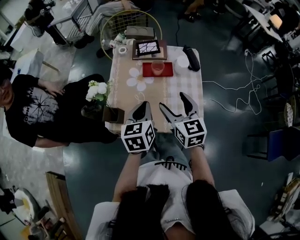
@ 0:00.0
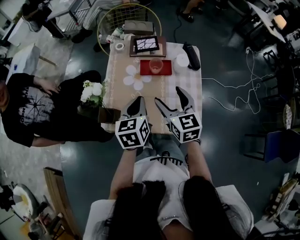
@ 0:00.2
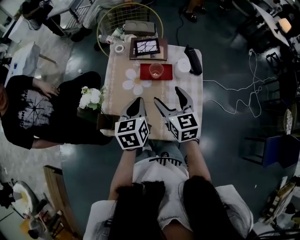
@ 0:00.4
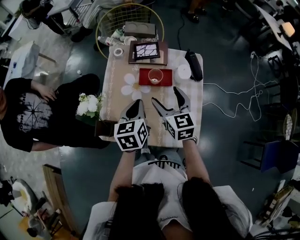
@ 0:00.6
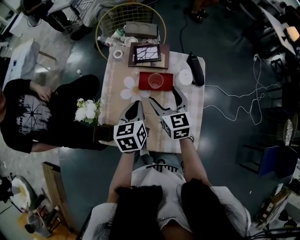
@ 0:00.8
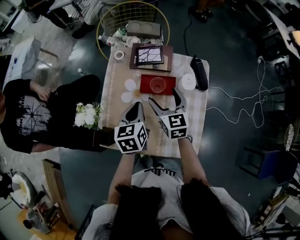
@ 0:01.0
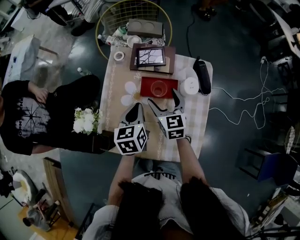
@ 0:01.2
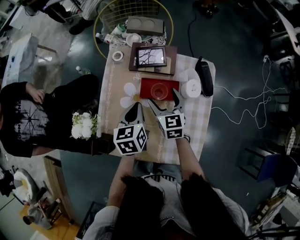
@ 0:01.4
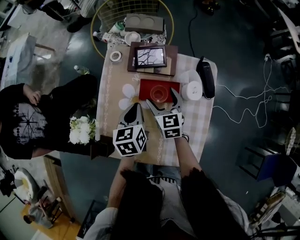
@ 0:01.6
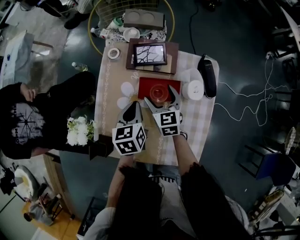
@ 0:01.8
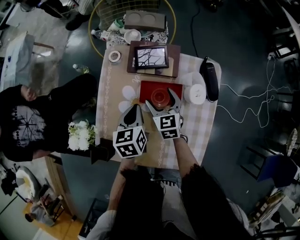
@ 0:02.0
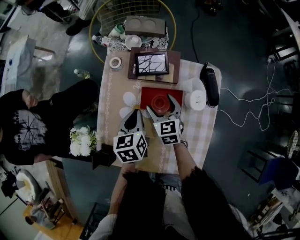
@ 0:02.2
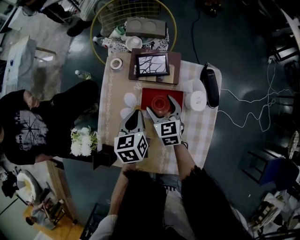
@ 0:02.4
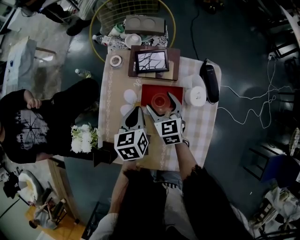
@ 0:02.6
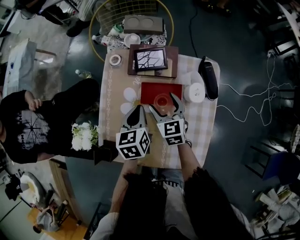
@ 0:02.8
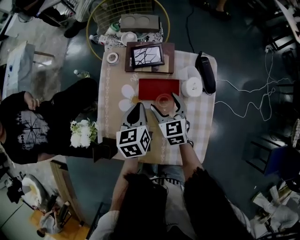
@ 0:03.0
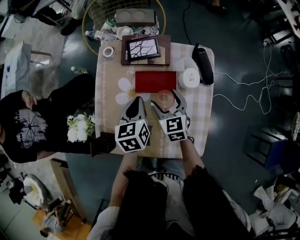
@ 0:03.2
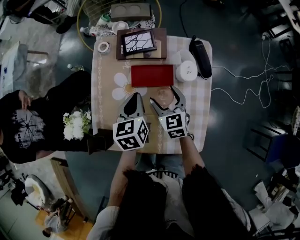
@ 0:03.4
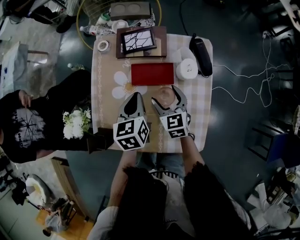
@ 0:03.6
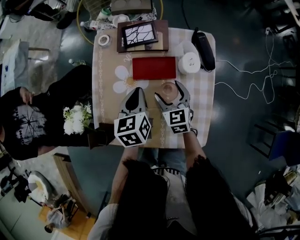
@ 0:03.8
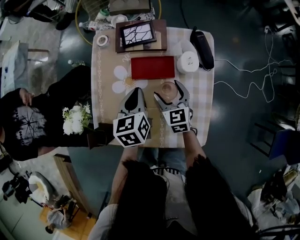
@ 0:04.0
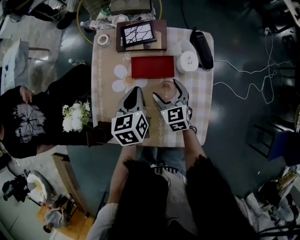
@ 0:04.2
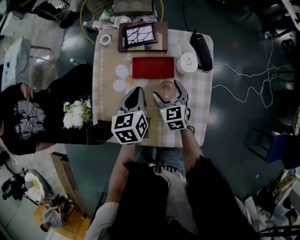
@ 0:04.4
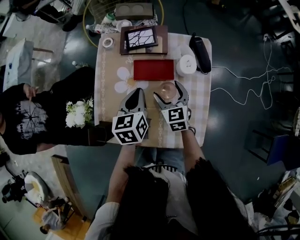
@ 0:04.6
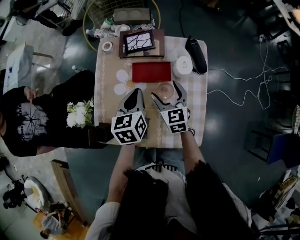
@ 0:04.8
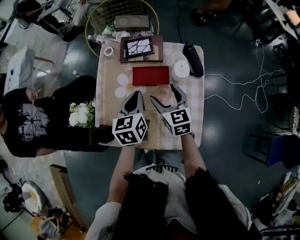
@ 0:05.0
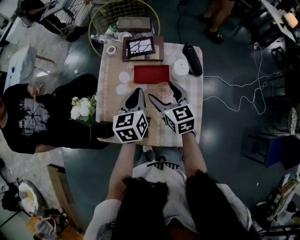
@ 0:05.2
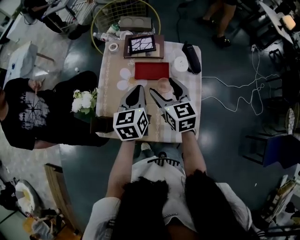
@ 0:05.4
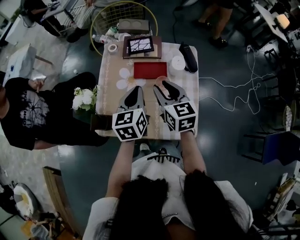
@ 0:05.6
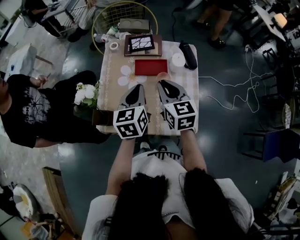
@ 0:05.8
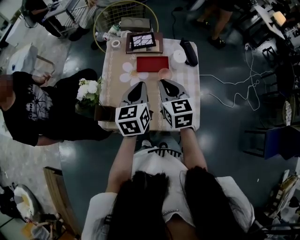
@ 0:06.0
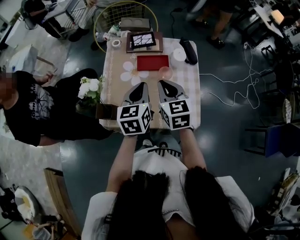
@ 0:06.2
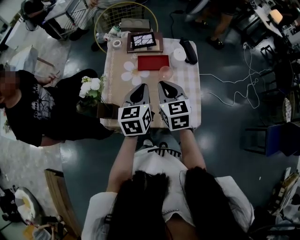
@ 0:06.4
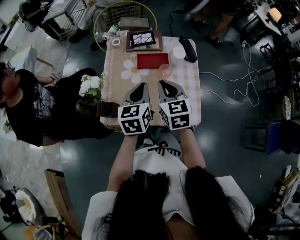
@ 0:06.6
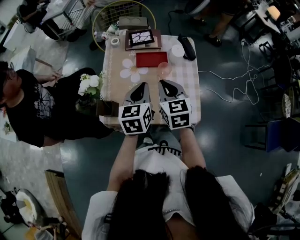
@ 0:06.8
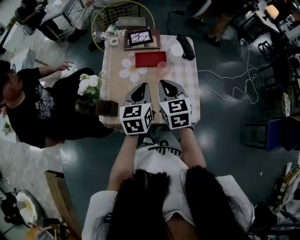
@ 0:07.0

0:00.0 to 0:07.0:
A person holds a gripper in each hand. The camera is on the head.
0:00.0 to 0:01.4: Both grippers travel together forward and downward, about 25 cm.
0:02.8 to 0:04.2: The right gripper travels backward by some 5 cm.
0:04.2 to 0:05.6: The left gripper goes roughly 15 cm upward and backward, while the right gripper shifts approximately 20 cm upward, and closes.
0:05.6 to 0:07.0: Both grippers travel together backward, roughly 10 cm.

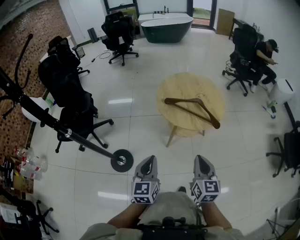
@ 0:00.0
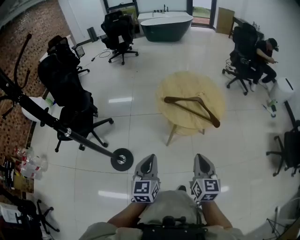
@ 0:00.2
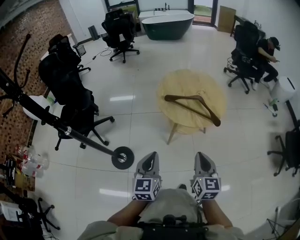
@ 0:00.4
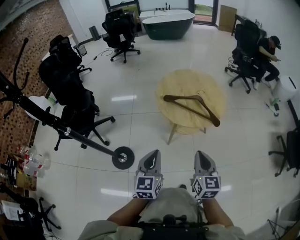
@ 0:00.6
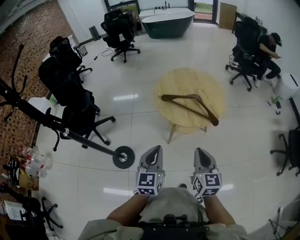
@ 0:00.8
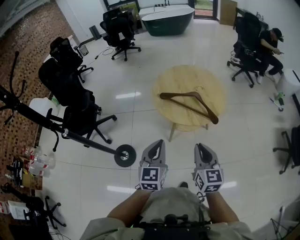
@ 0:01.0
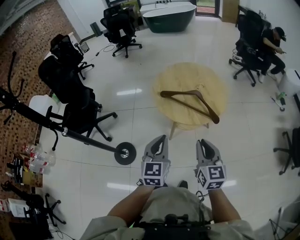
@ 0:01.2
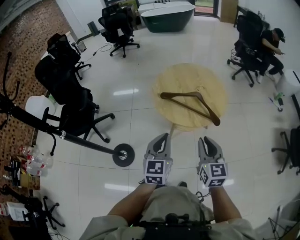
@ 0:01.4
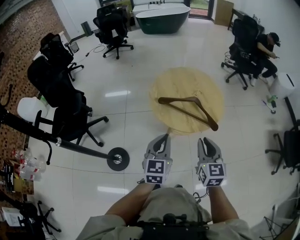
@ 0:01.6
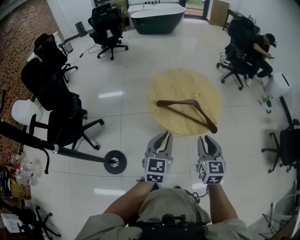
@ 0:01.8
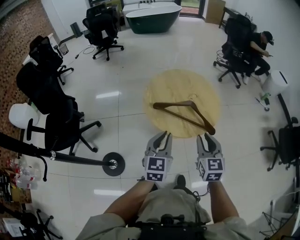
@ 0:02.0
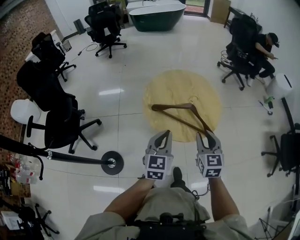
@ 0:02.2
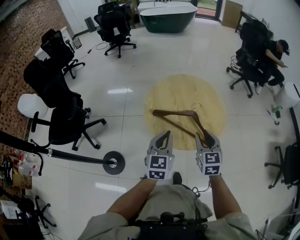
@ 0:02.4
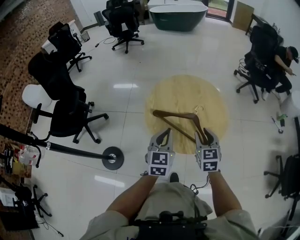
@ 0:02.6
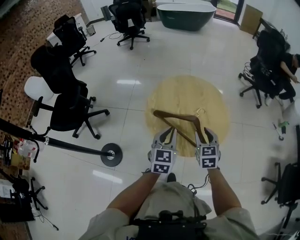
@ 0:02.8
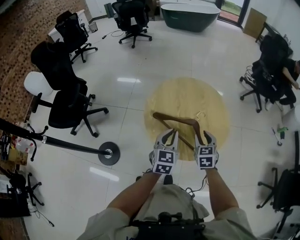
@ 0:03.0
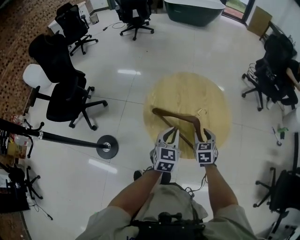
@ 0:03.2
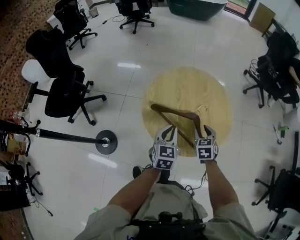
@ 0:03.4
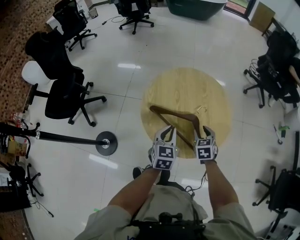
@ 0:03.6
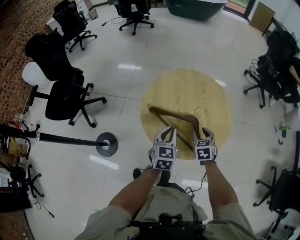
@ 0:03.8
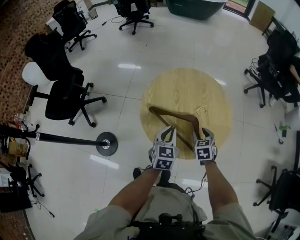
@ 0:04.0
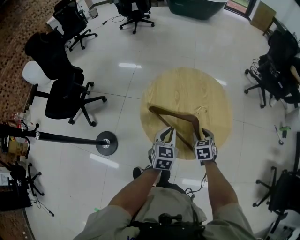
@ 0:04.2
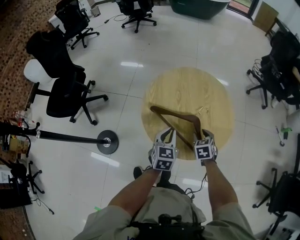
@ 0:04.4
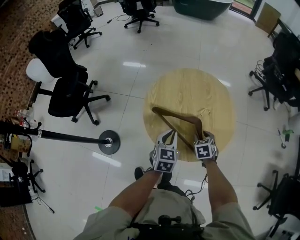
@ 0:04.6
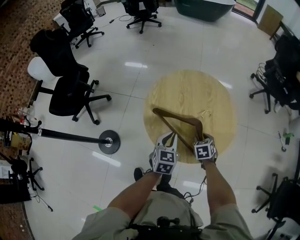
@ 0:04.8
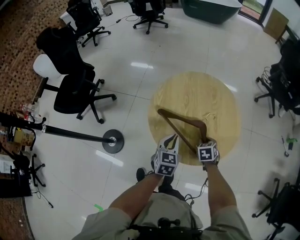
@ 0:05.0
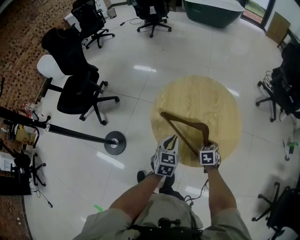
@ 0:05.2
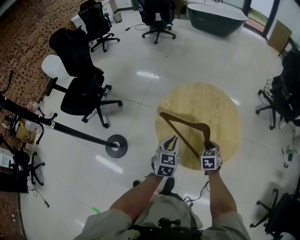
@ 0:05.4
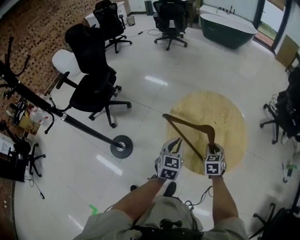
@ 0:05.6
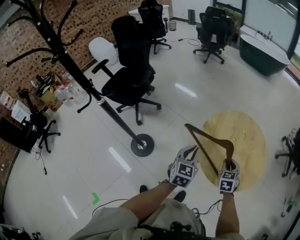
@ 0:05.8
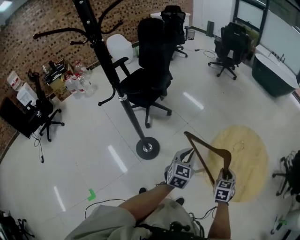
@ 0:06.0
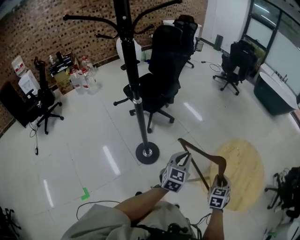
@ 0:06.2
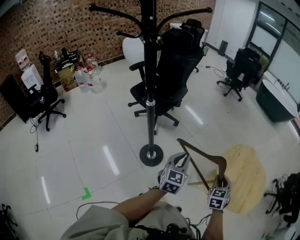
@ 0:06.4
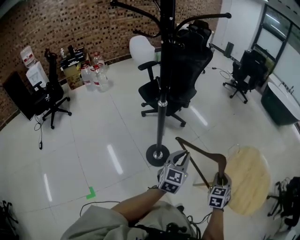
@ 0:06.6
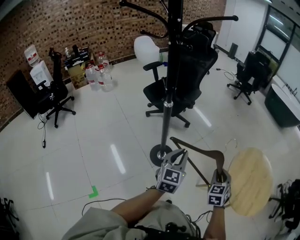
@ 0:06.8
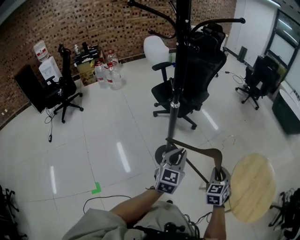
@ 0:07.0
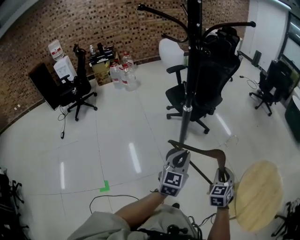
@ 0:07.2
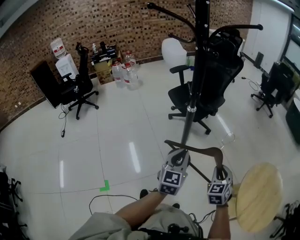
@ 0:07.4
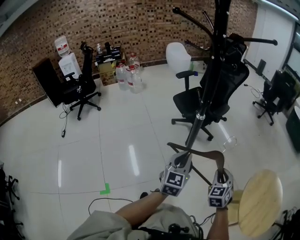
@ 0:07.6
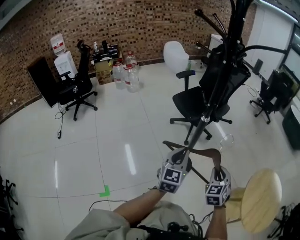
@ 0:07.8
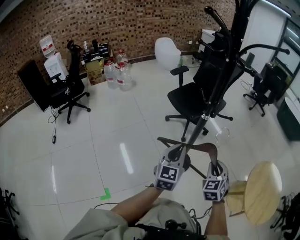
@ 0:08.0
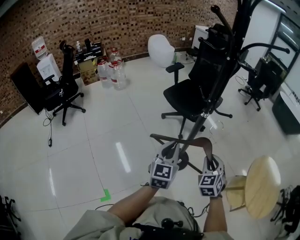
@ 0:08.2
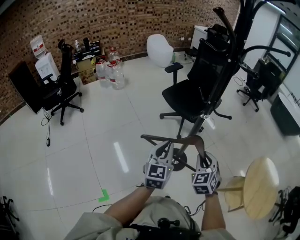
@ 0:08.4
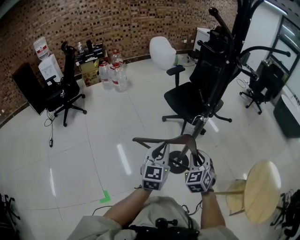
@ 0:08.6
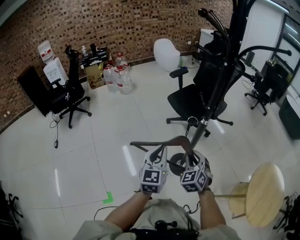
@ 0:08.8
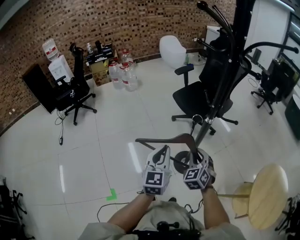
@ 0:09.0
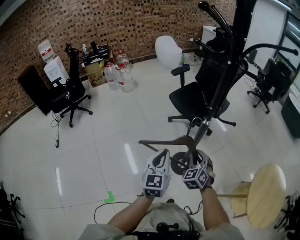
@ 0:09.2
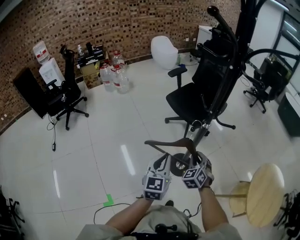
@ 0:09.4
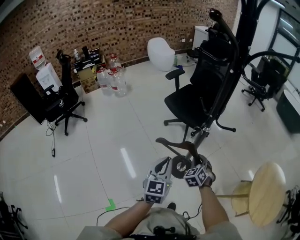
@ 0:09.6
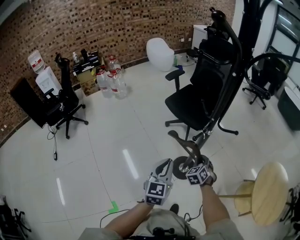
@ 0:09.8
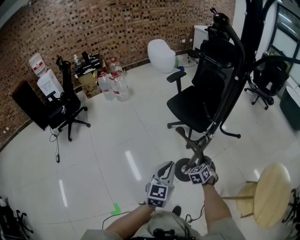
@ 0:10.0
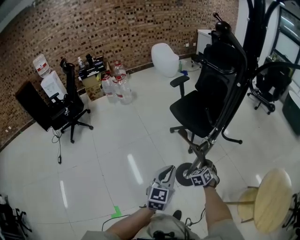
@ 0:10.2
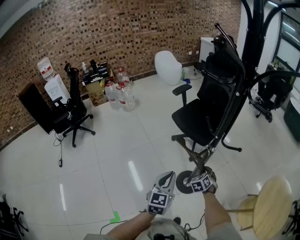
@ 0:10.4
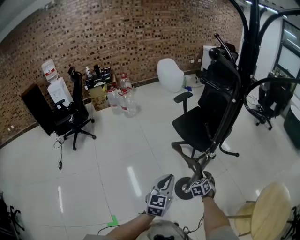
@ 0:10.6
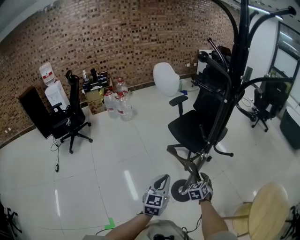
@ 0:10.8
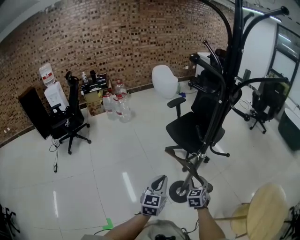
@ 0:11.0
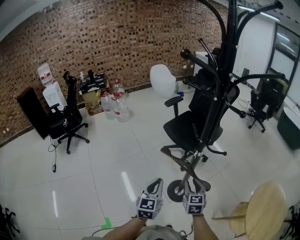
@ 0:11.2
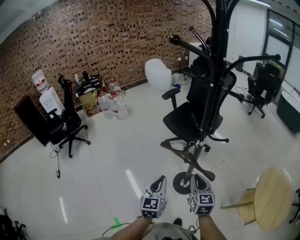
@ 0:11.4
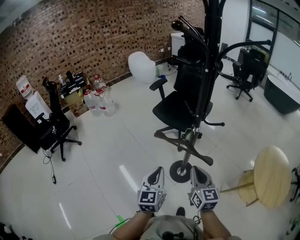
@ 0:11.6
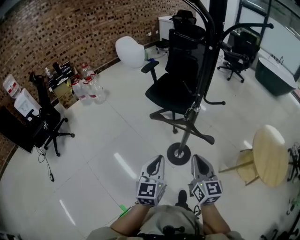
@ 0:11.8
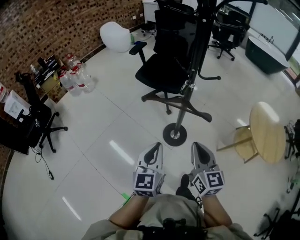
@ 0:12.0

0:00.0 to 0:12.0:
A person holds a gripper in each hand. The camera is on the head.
0:00.0 to 0:01.6: The left gripper travels forward and to the right by about 25 cm, while the right gripper heads forward, covering some 20 cm.
0:01.6 to 0:03.0: The pair of grippers is taken forward, about 40 cm. The right gripper swivels approximately 30 degrees, and opens up.
0:03.0 to 0:04.4: The two grippers go approximately 15 cm downward and forward.
0:04.4 to 0:06.0: Both grippers are carried to the left and backward, some 50 cm. The two grippers go roughly 20 cm upward. The right gripper turns by about 20 degrees, and closes. The left gripper swivels roughly 30 degrees.
0:06.0 to 0:07.6: The pair of grippers is taken approximately 70 cm. The left gripper rotates approximately 30 degrees; the right gripper turns by roughly 40 degrees.
0:07.6 to 0:09.0: The right gripper moves to the left and forward, approximately 35 cm. Meanwhile the left gripper shifts approximately 25 cm to the left.
0:09.0 to 0:10.4: The left gripper shifts roughly 15 cm forward. Meanwhile the right gripper moves forward and downward, roughly 25 cm, and rotates about 20 degrees.
0:10.4 to 0:12.0: The left gripper moves backward and to the left, approximately 20 cm. The right gripper shifts about 35 cm backward, upward and to the left, and tilts its fingers some 40 degrees upward.

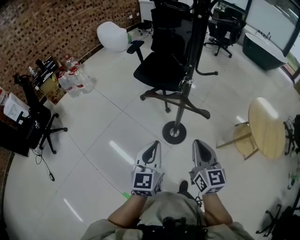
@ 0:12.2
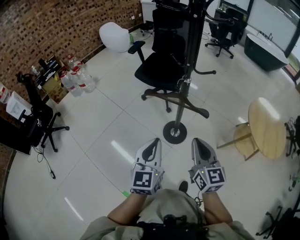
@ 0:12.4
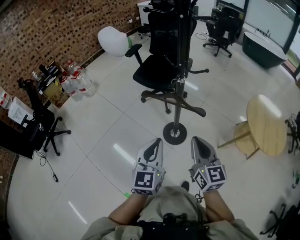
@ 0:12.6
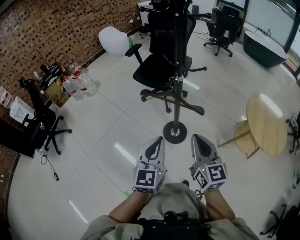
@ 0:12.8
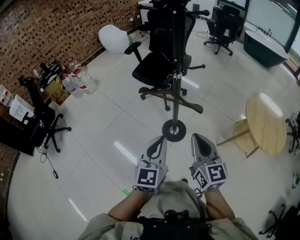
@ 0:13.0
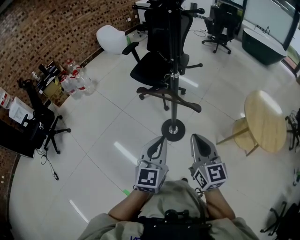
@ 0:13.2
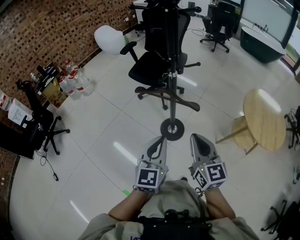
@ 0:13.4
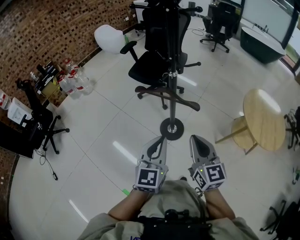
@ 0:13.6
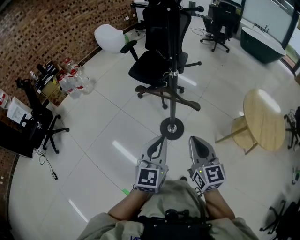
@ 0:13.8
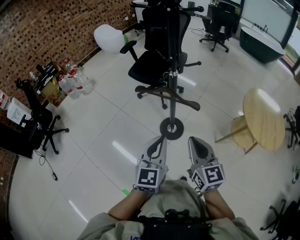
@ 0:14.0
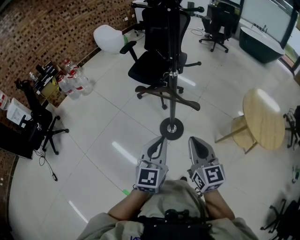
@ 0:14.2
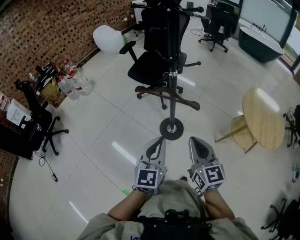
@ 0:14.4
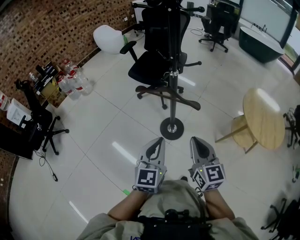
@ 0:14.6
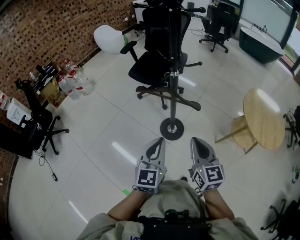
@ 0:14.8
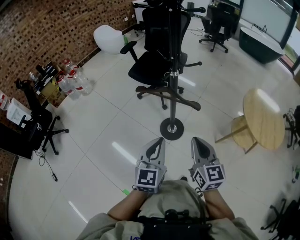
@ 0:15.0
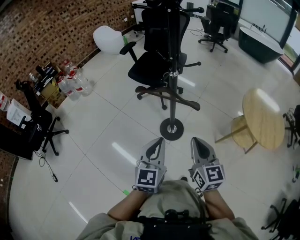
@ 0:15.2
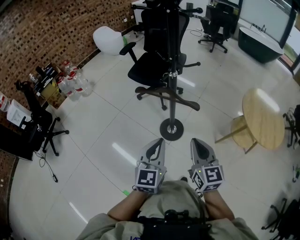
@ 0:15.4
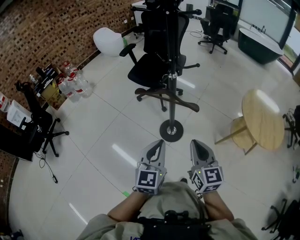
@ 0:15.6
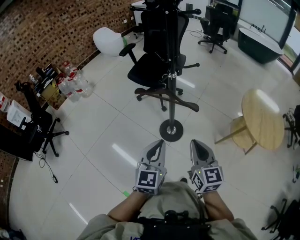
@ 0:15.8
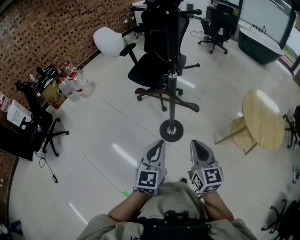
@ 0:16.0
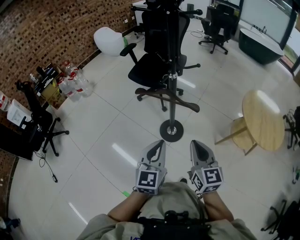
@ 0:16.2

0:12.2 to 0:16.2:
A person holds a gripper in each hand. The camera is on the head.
0:12.2 to 0:13.6: Both grippers move to the right and backward, some 20 cm.
0:13.6 to 0:14.8: The grippers stay close to where they were, moving slightly.
0:14.8 to 0:16.2: The two grippers keep their place.
